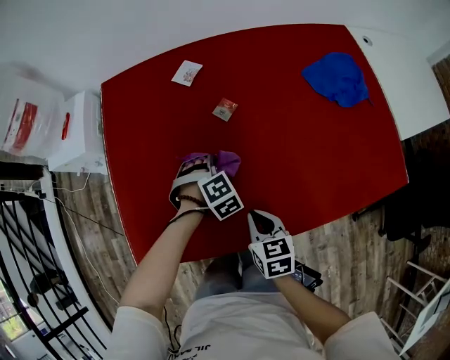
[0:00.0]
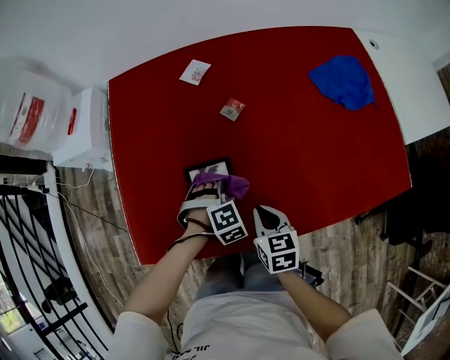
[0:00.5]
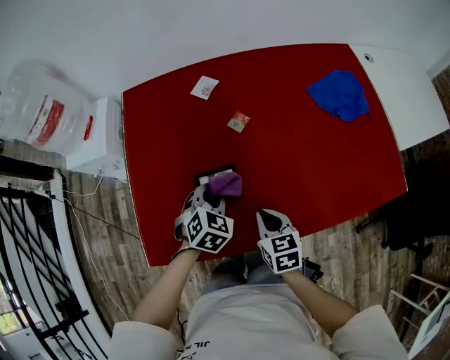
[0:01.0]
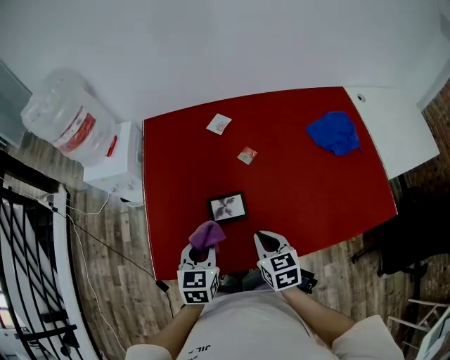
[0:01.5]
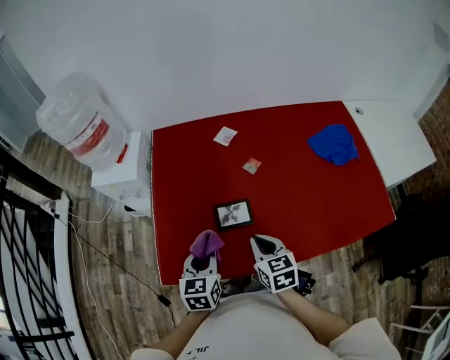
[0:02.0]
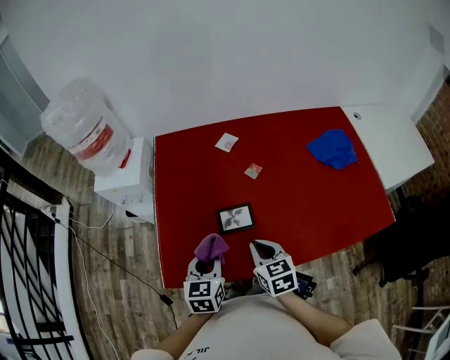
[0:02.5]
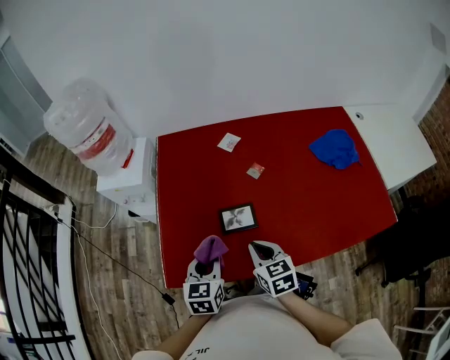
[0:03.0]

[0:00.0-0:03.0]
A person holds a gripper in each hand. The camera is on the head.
0.0 to 1.5 s: The left gripper is displaced upward, backward and to the left by some 25 cm, and rolls counterclockwise, seen from behind, by some 70 degrees, while the right gripper heads upward, covering roughly 10 cm.
1.5 to 3.0 s: The right gripper shifts some 5 cm to the left.

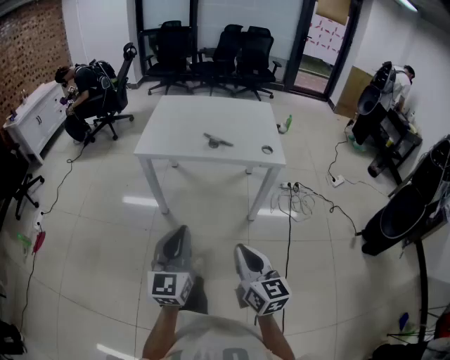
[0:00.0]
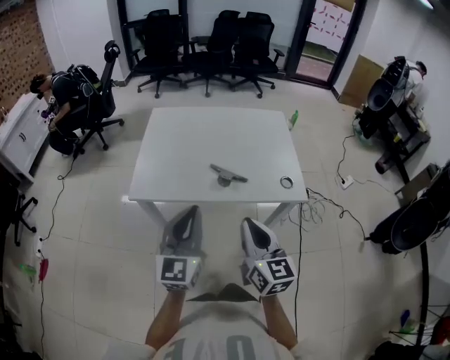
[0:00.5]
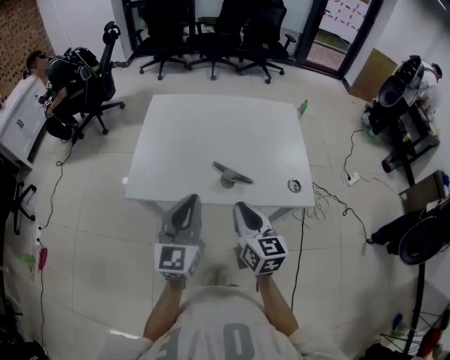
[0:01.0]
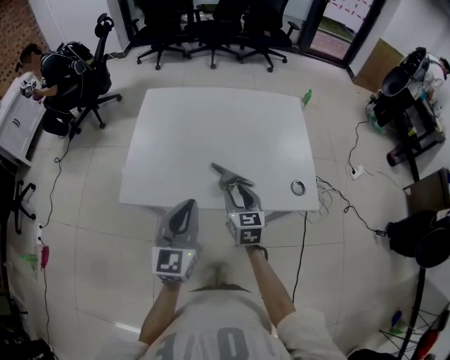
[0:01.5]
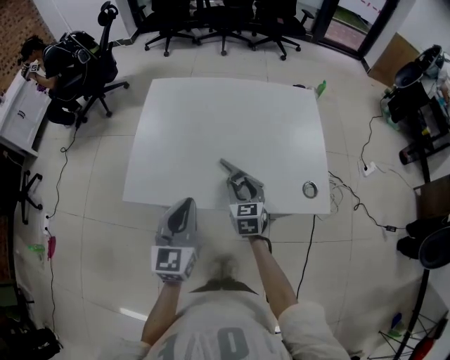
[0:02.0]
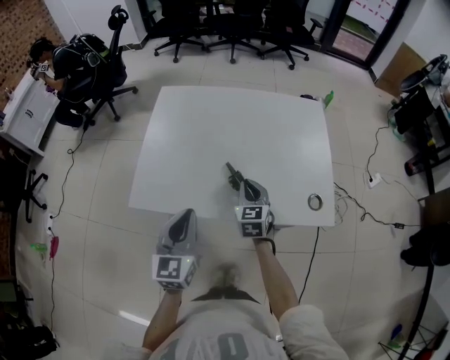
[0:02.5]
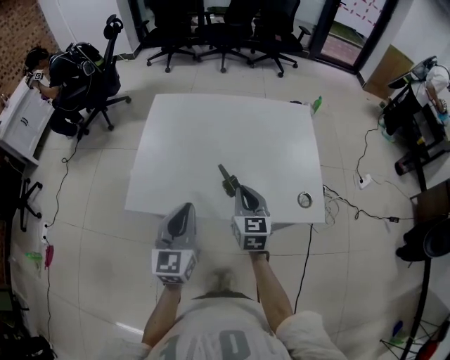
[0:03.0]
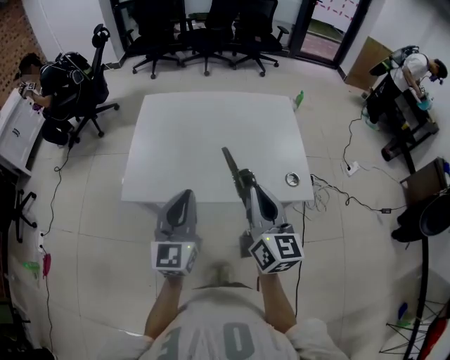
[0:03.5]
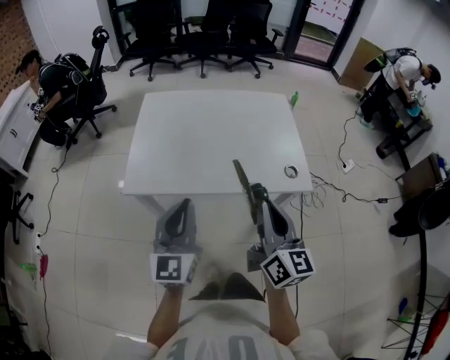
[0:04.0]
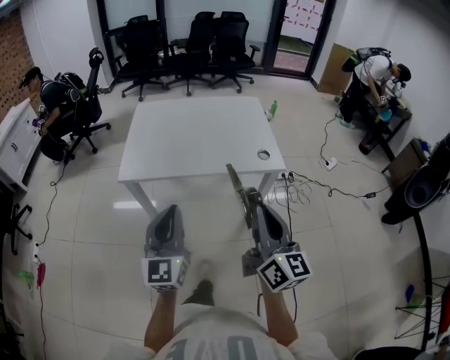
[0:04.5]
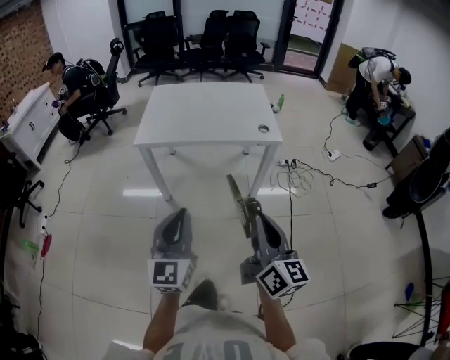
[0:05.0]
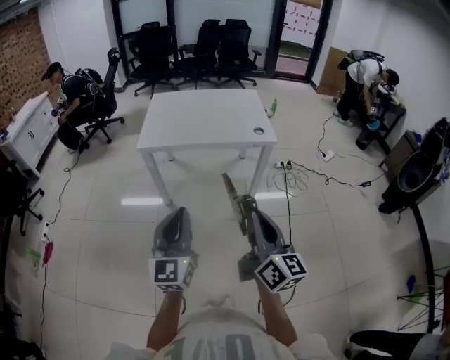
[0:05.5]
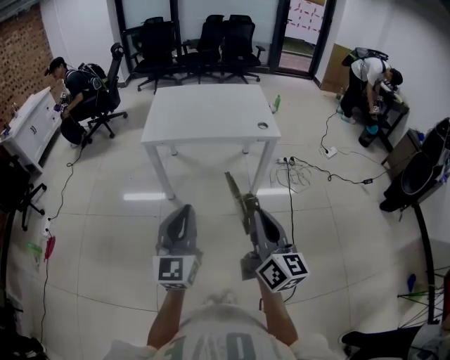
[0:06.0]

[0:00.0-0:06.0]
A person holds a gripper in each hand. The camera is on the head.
0.0 to 2.0 s: The pair of grippers is taken forward, about 50 cm. The right gripper turns by some 30 degrees, and opens.
2.0 to 4.0 s: The right gripper goes about 30 cm upward and backward, tips its fingers upward by about 30 degrees, and closes, while the left gripper is displaced backward and upward by approximately 15 cm.
4.0 to 6.0 s: The two grippers go about 40 cm backward.

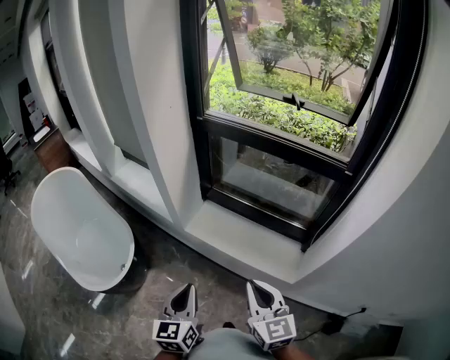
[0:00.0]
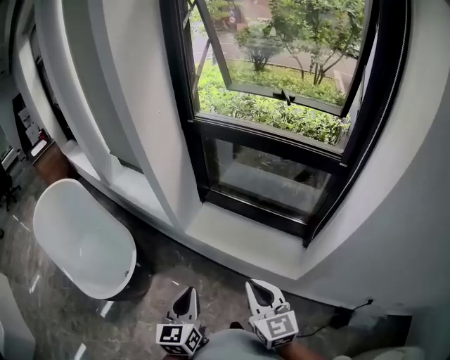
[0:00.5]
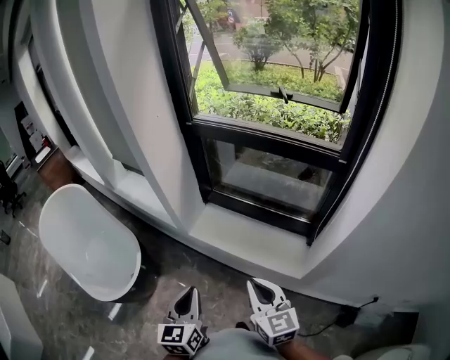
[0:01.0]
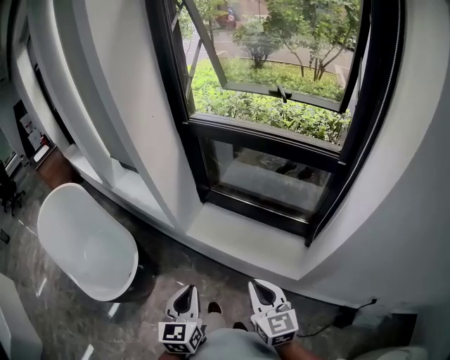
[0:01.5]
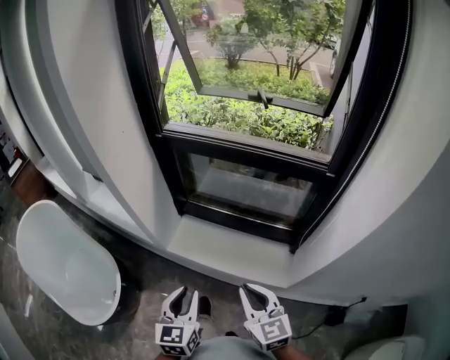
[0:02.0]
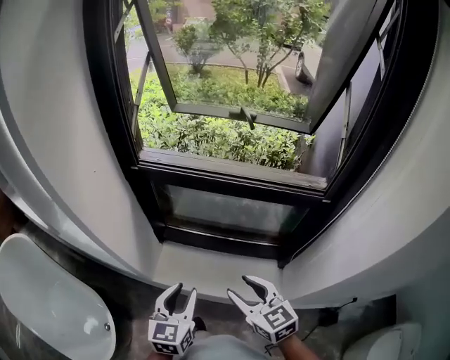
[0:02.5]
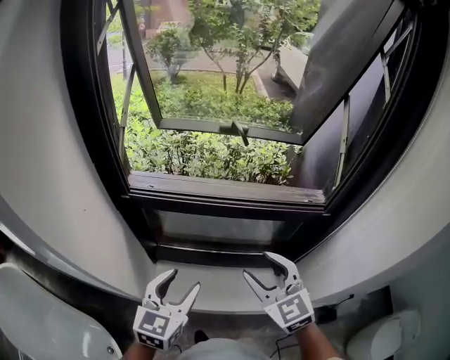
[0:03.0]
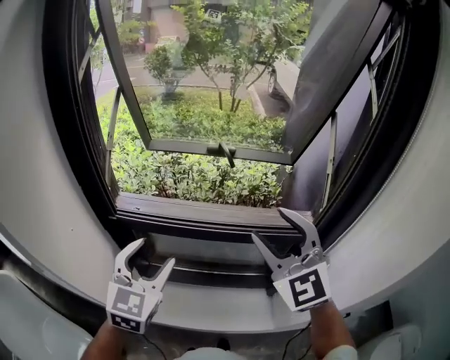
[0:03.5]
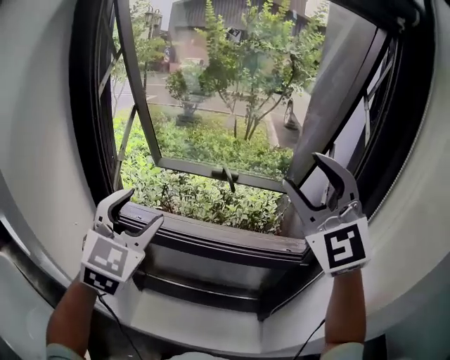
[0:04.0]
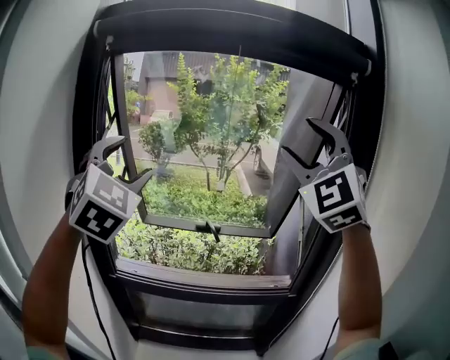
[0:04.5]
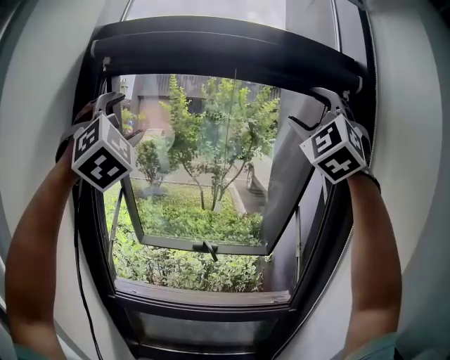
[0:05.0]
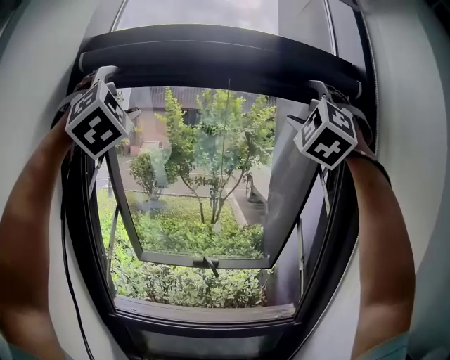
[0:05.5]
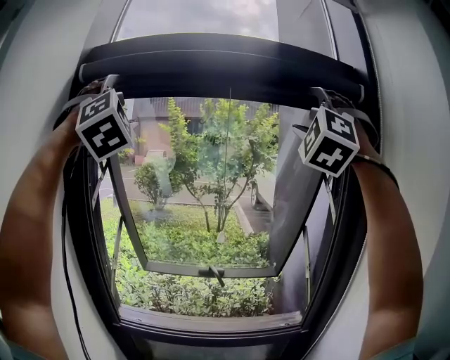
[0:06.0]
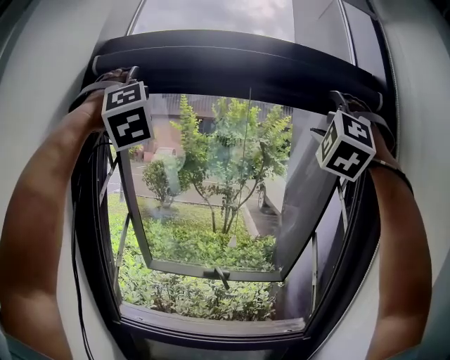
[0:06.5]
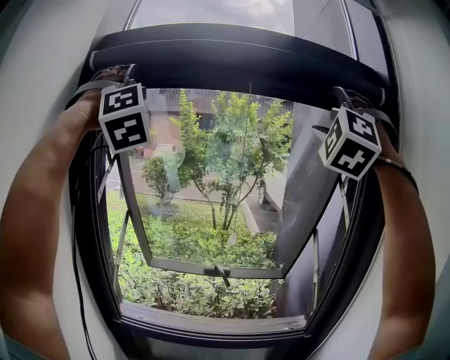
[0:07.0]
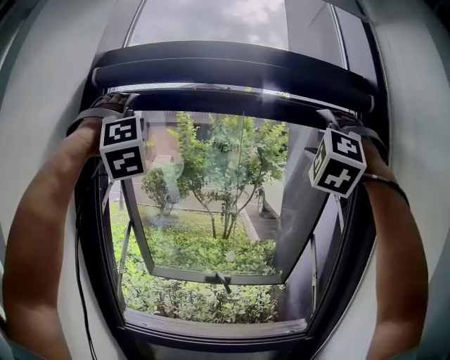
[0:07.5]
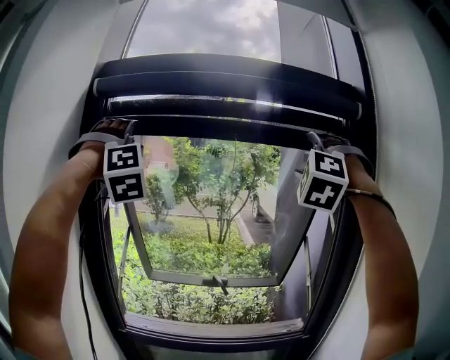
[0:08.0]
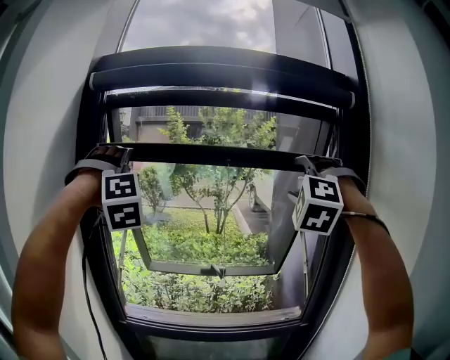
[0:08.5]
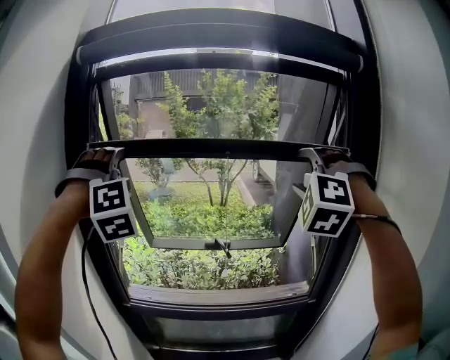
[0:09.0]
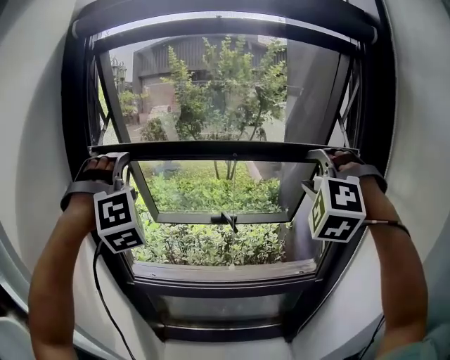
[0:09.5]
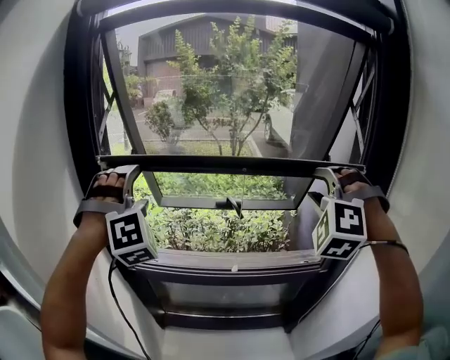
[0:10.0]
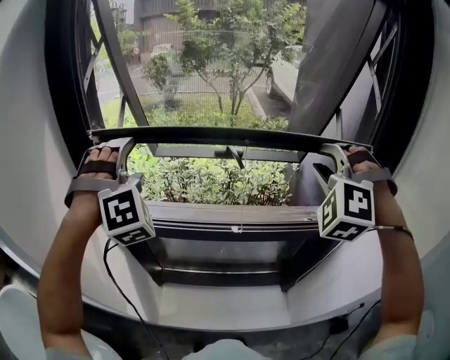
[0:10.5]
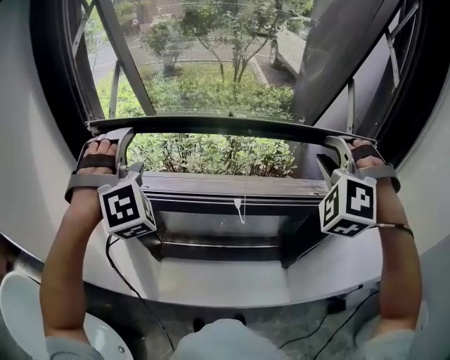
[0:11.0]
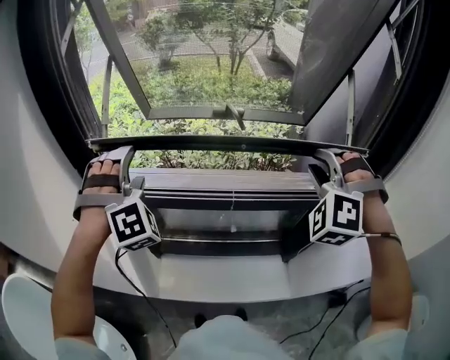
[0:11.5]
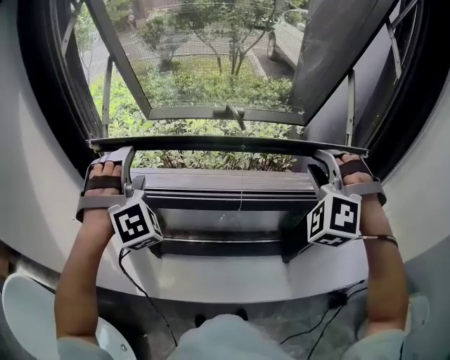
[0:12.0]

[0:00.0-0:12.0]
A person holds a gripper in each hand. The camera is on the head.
0.0 to 2.0 s: The right gripper shifts about 10 cm forward, while the left gripper travels forward and to the right by some 10 cm.
2.0 to 4.0 s: The left gripper is displaced forward and upward by about 50 cm, swivels some 40 degrees, and opens its fingers; the right gripper is displaced upward and forward by some 60 cm, rolls counterclockwise, seen from behind, by approximately 50 degrees, and opens its fingers.
4.0 to 6.0 s: The grippers both shift upward by some 40 cm. The right gripper twists some 50 degrees counterclockwise, seen from behind; the left gripper twists about 50 degrees clockwise, seen from behind.
6.0 to 8.0 s: The grippers both shift downward by approximately 5 cm.
8.0 to 10.0 s: Both grippers travel together downward, approximately 30 cm.
10.0 to 12.0 s: The two grippers go some 20 cm downward.

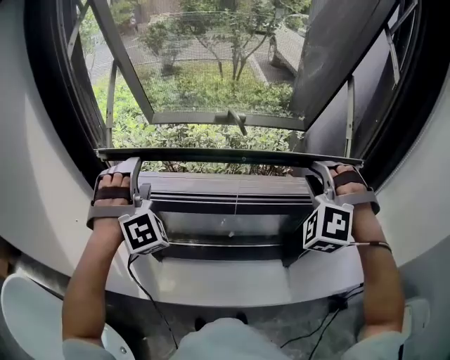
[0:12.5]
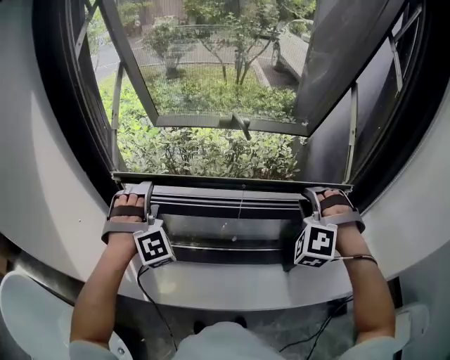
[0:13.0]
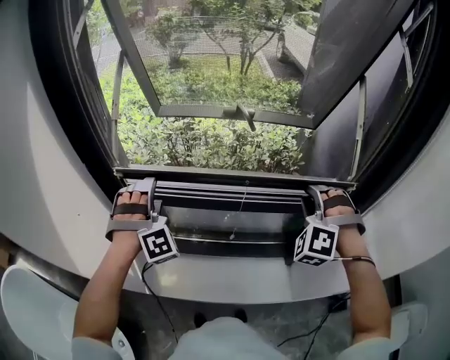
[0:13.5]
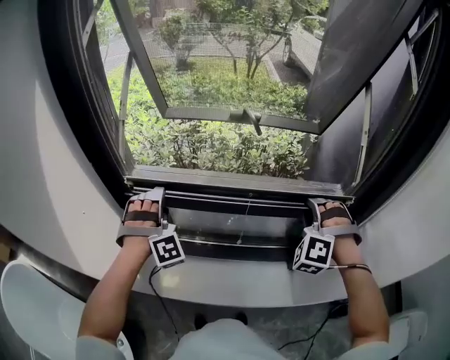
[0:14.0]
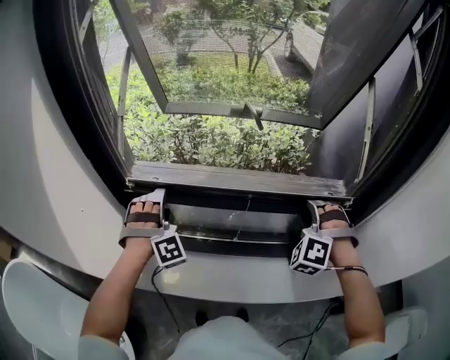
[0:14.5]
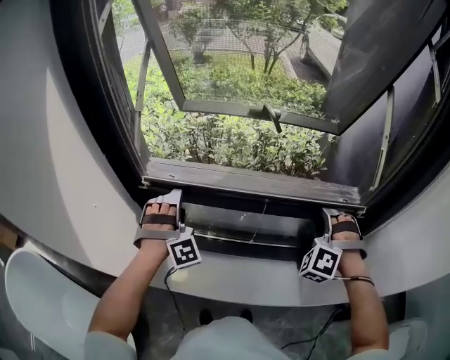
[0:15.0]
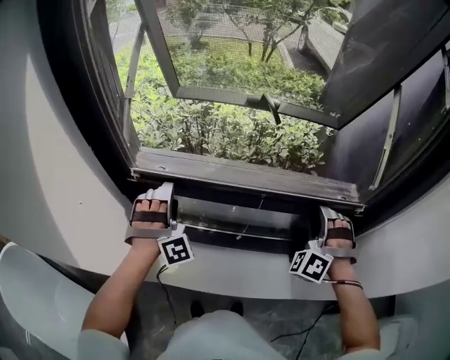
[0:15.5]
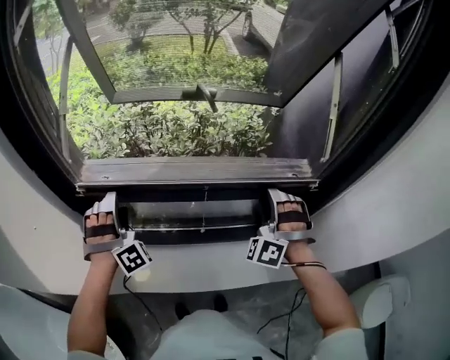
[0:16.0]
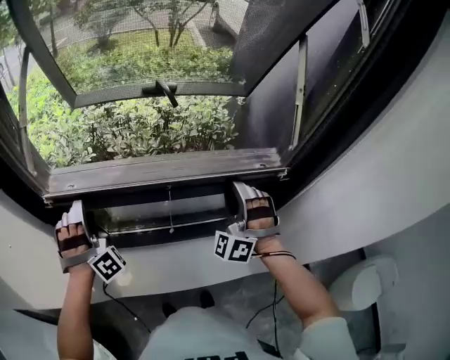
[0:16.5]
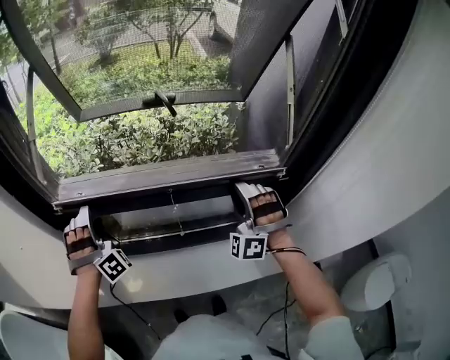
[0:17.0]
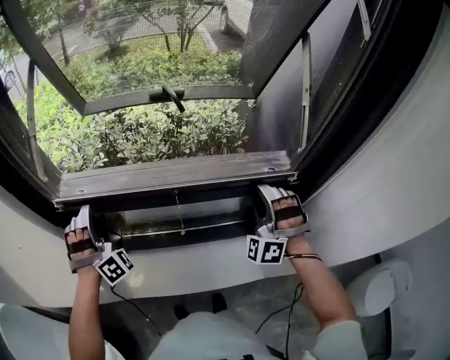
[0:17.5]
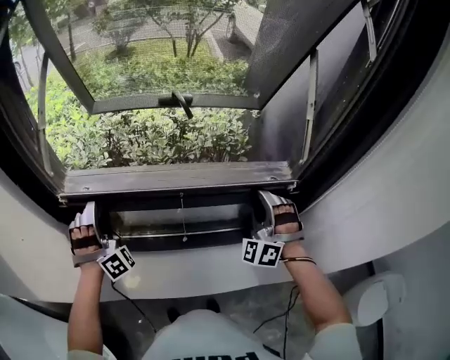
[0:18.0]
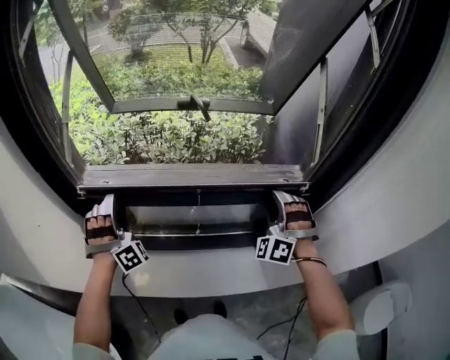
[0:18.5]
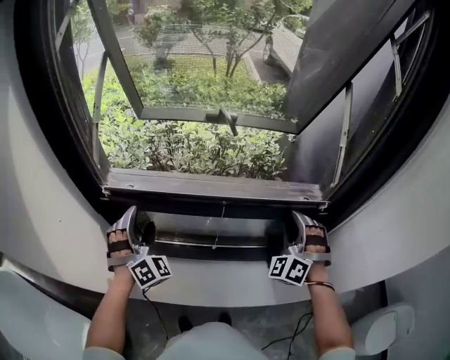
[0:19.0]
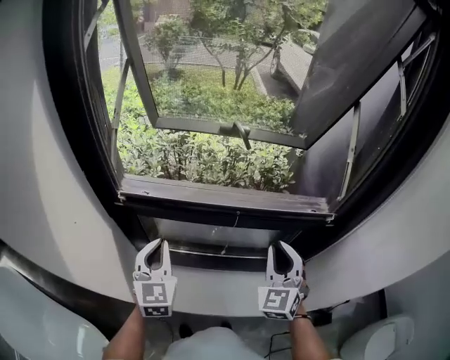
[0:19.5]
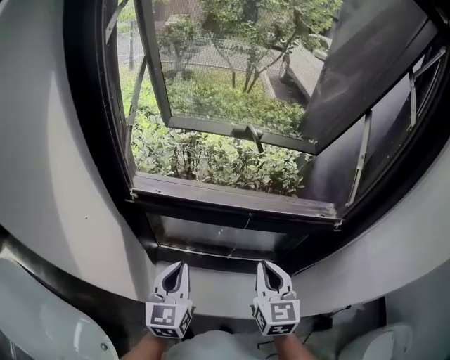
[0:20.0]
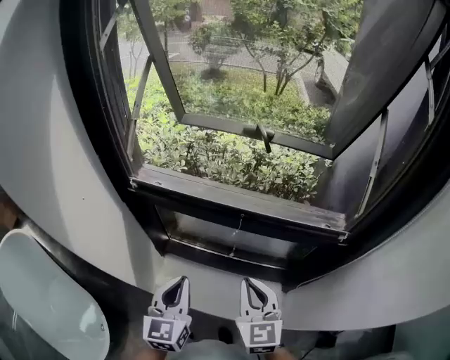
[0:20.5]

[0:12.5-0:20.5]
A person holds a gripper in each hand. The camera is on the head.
12.5 to 14.5 s: Both grippers move downward, some 15 cm.
14.5 to 16.5 s: The right gripper rotates some 30 degrees.
16.5 to 18.5 s: There are only small adjustments of the grippers.
18.5 to 20.5 s: The left gripper is displaced backward and to the right by roughly 25 cm, rotates around the line of its fingers by some 90 degrees, counterclockwise from behind, and closes its fingers; the right gripper heads to the left and backward, covering some 20 cm, and rotates around the line of its fingers by about 70 degrees, clockwise from behind.
